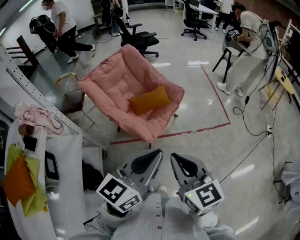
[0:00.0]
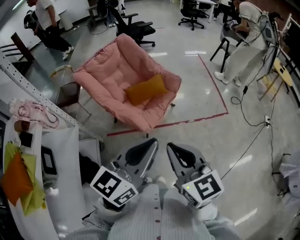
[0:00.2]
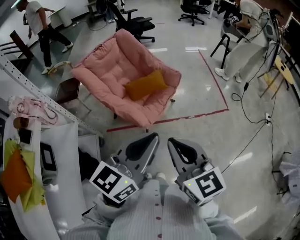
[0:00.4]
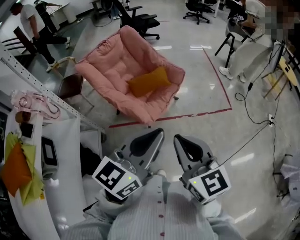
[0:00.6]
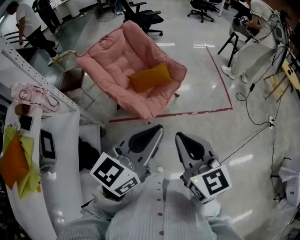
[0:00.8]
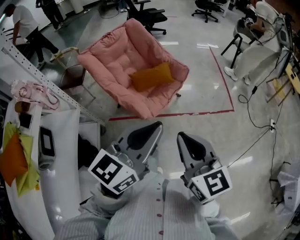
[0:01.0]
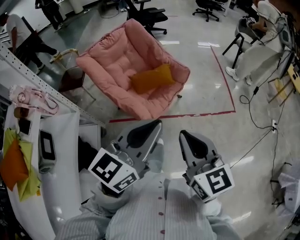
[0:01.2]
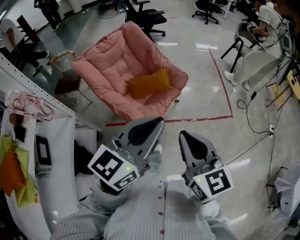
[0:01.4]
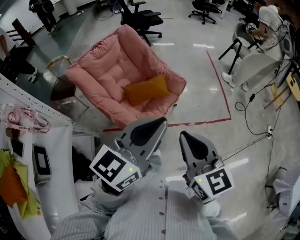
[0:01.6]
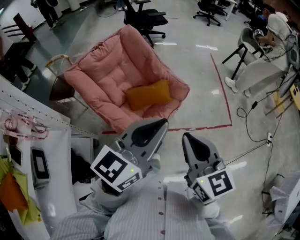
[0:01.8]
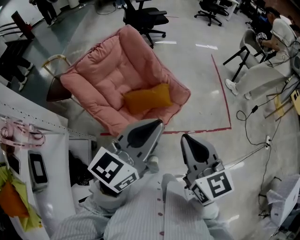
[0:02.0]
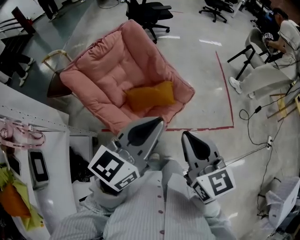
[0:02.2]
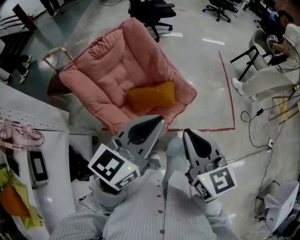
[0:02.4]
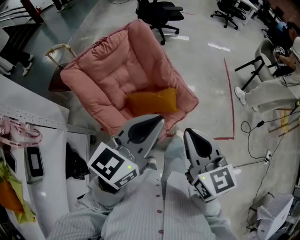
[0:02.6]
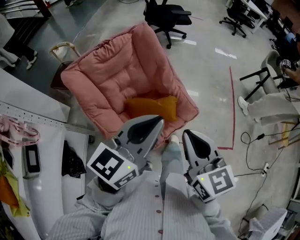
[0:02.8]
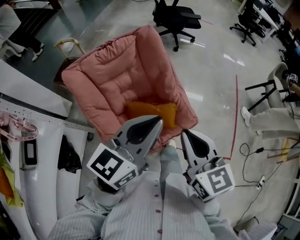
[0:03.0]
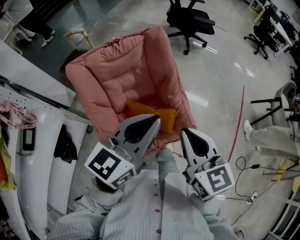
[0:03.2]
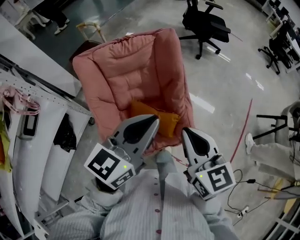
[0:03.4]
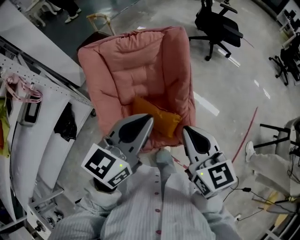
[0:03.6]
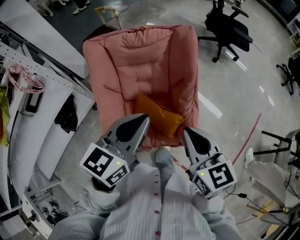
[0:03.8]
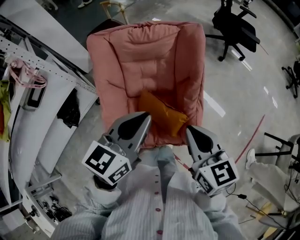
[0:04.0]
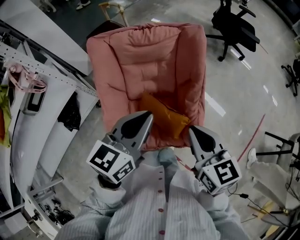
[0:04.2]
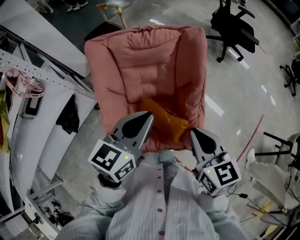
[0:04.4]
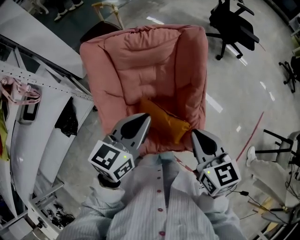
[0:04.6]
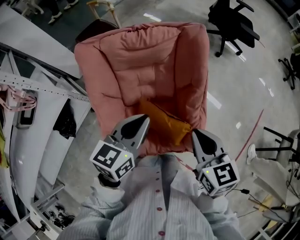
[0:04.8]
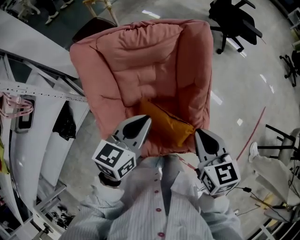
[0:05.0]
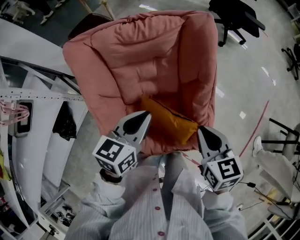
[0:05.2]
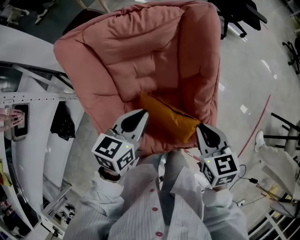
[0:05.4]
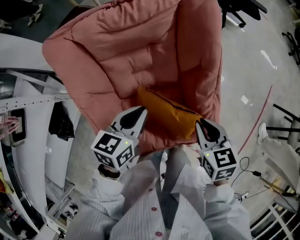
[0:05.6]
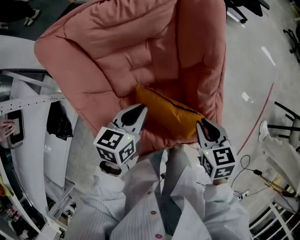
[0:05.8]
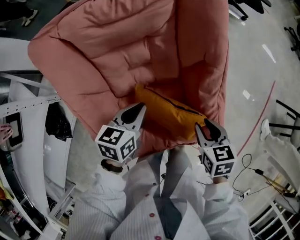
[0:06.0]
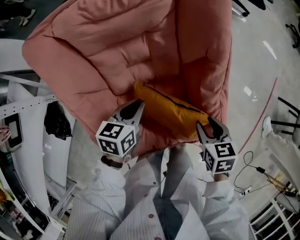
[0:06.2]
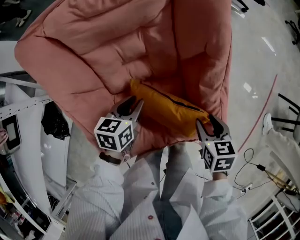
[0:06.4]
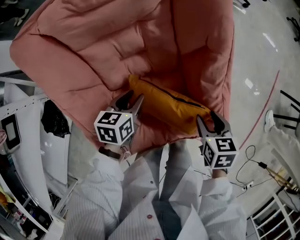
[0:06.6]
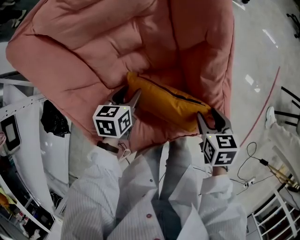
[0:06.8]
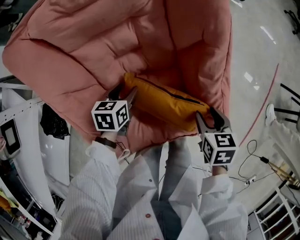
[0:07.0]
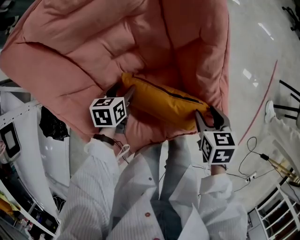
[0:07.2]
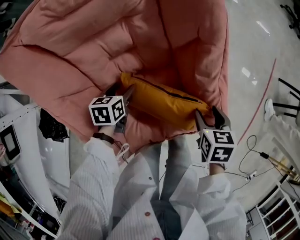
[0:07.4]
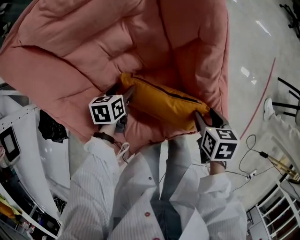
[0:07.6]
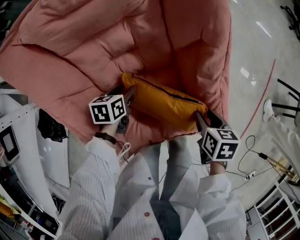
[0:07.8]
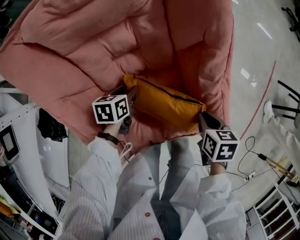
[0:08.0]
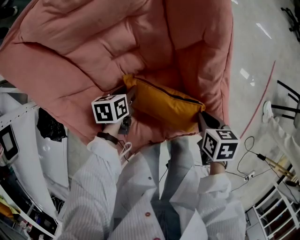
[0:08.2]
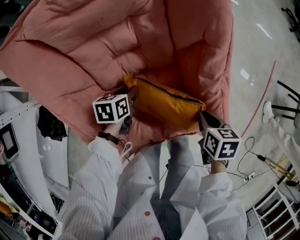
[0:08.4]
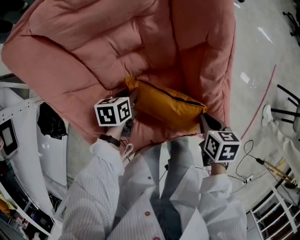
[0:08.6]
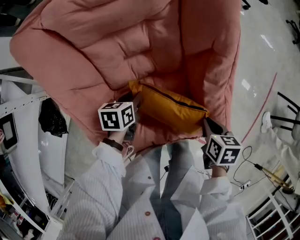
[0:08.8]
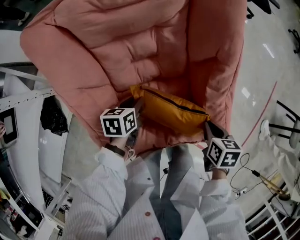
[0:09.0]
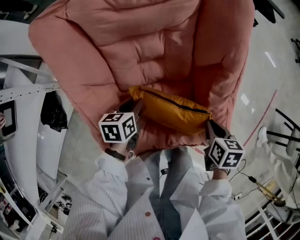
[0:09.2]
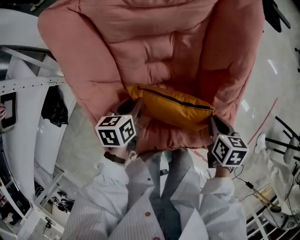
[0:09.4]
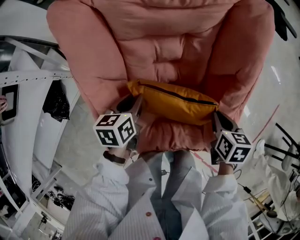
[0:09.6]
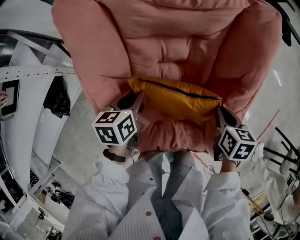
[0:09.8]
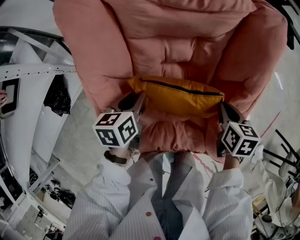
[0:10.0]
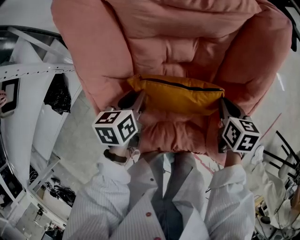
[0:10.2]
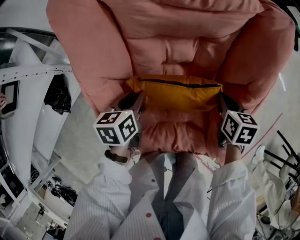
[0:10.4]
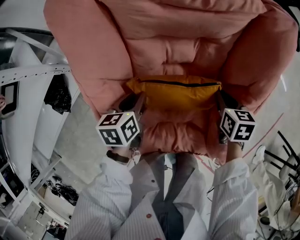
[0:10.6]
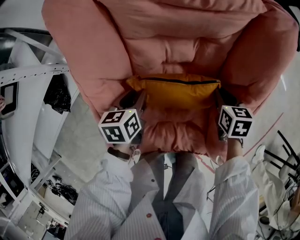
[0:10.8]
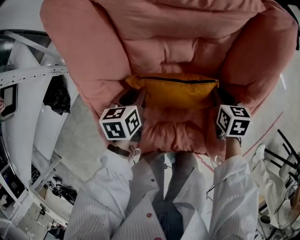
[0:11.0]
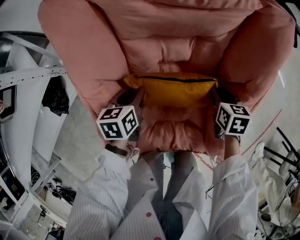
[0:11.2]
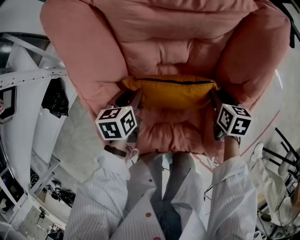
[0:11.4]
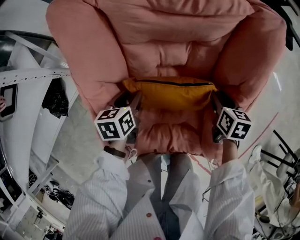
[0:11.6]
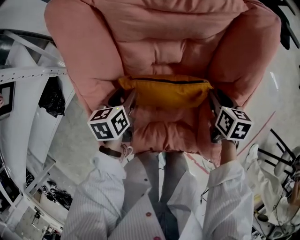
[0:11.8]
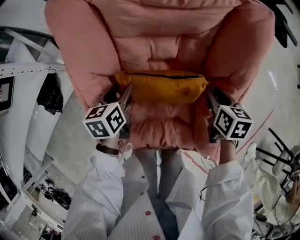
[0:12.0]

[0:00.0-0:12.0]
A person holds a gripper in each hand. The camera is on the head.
0:00.0 to 0:01.6: Both grippers move forward, approximately 20 cm.
0:01.6 to 0:03.0: Both grippers travel together forward, roughly 30 cm. The left gripper swivels some 20 degrees.
0:03.0 to 0:04.4: The left gripper shifts by roughly 15 cm, and changes its angle by about 30 degrees; the right gripper changes place by some 15 cm, and changes its angle by approximately 30 degrees.
0:04.4 to 0:06.0: The grippers both shift downward by some 30 cm. The left gripper changes its angle by some 30 degrees, while the right gripper turns by some 30 degrees, and opens its fingers.
0:06.0 to 0:07.6: The left gripper travels downward by some 15 cm, and opens; the right gripper travels downward and to the right by some 10 cm, turns by about 20 degrees, and opens its fingers.
0:07.6 to 0:09.0: The left gripper ends up roughly 5 cm from where it was, and closes its fingers; the right gripper closes up.
0:09.0 to 0:10.4: The right gripper moves forward and to the left, about 20 cm, while the left gripper travels to the left by approximately 10 cm.
0:10.4 to 0:12.0: The left gripper opens its fingers. Meanwhile the right gripper opens up.

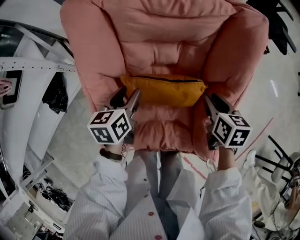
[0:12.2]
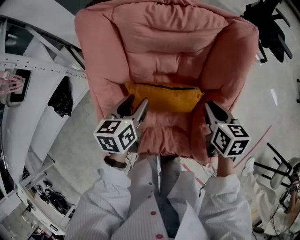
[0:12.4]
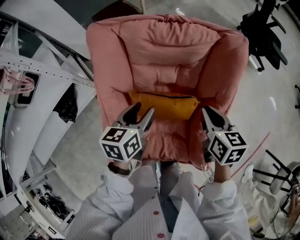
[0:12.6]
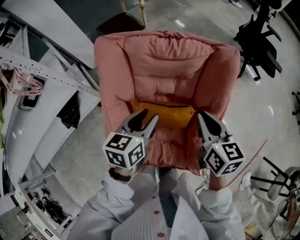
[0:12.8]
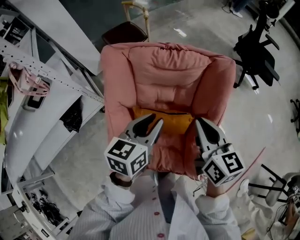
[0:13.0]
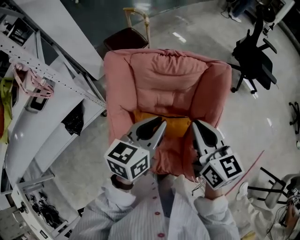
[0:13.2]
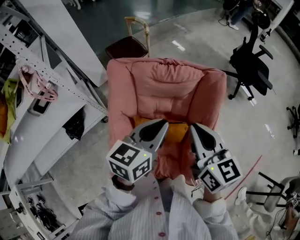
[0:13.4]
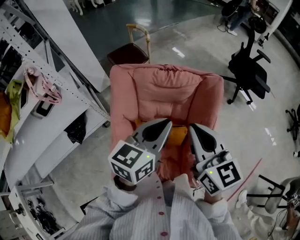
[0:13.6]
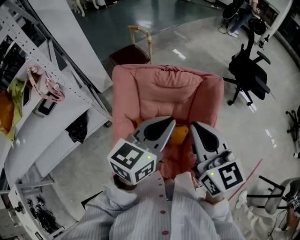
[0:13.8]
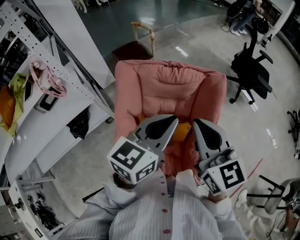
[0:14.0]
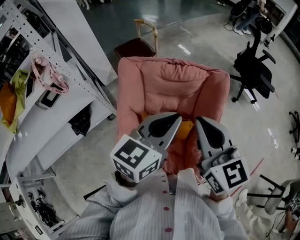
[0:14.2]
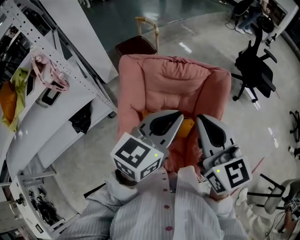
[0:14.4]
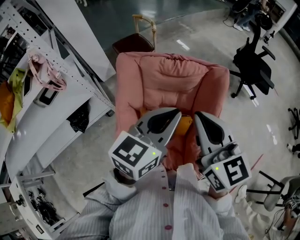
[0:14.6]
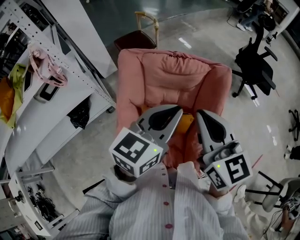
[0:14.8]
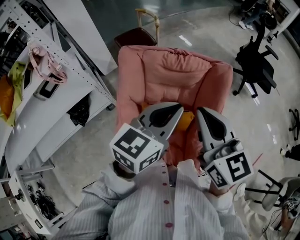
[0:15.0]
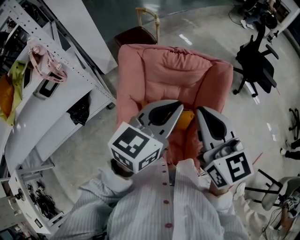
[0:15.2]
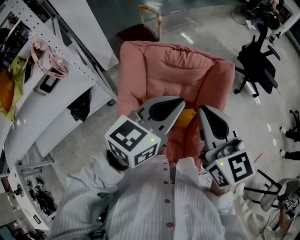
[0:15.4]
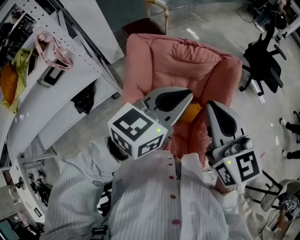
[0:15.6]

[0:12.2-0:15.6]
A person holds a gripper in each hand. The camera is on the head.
0:12.2 to 0:13.8: The two grippers go about 40 cm upward. The right gripper points its fingers some 40 degrees further upward, and closes its fingers. The left gripper changes its angle by about 40 degrees, and closes its fingers.
0:13.8 to 0:15.6: The grippers make only small movements.

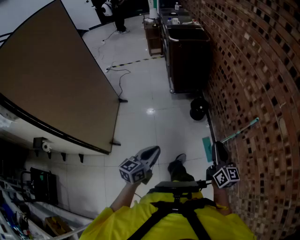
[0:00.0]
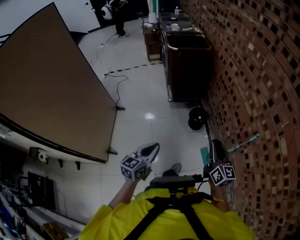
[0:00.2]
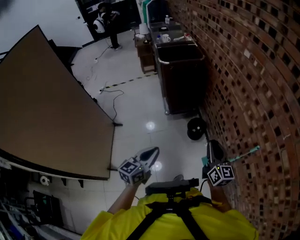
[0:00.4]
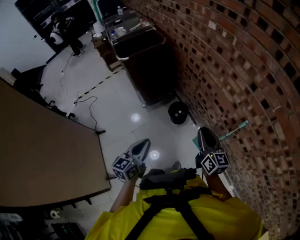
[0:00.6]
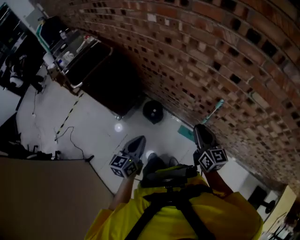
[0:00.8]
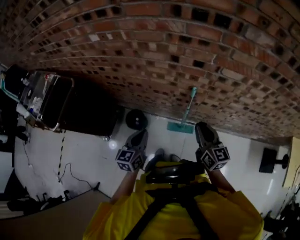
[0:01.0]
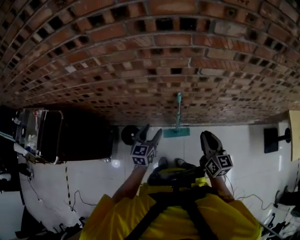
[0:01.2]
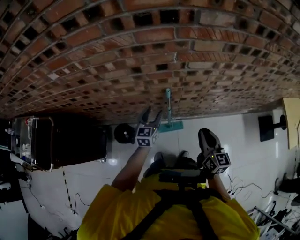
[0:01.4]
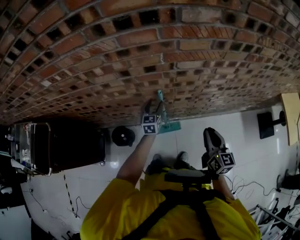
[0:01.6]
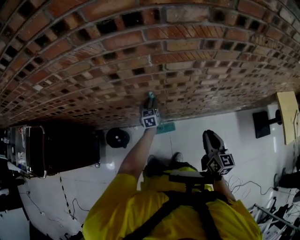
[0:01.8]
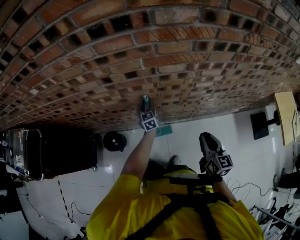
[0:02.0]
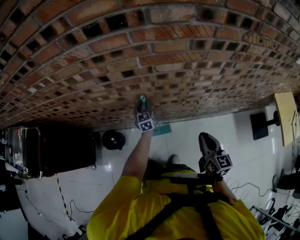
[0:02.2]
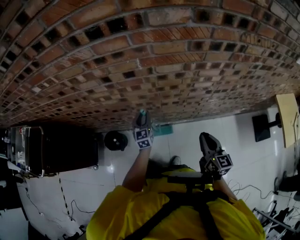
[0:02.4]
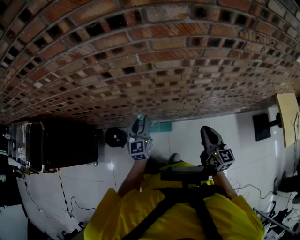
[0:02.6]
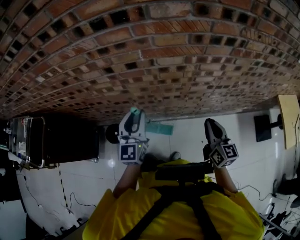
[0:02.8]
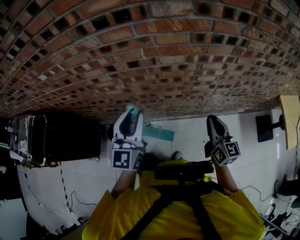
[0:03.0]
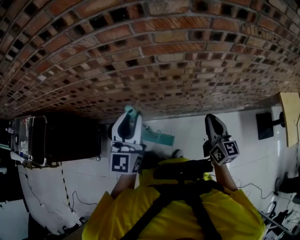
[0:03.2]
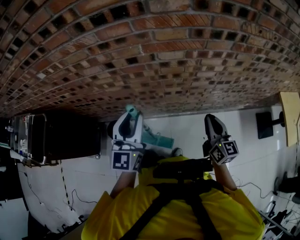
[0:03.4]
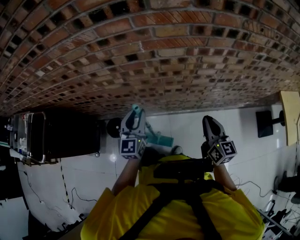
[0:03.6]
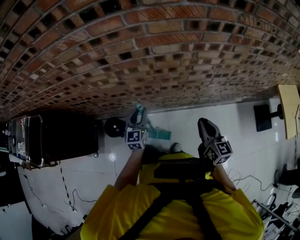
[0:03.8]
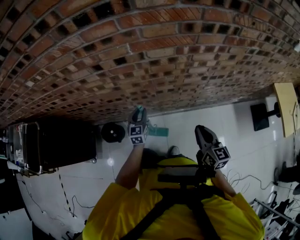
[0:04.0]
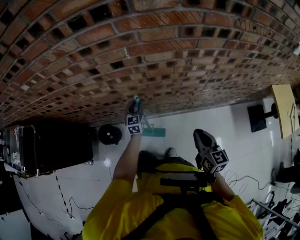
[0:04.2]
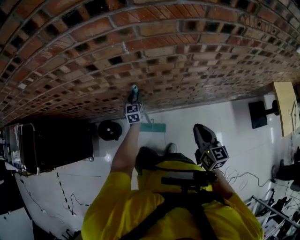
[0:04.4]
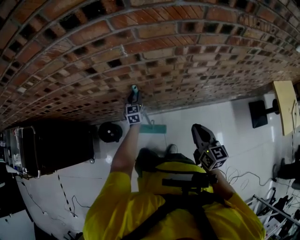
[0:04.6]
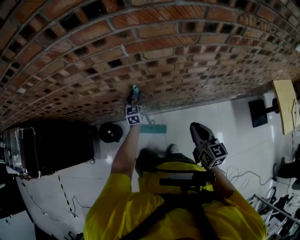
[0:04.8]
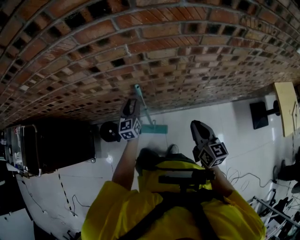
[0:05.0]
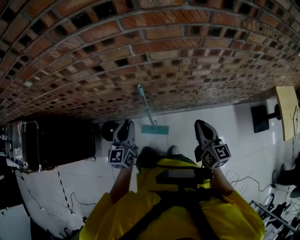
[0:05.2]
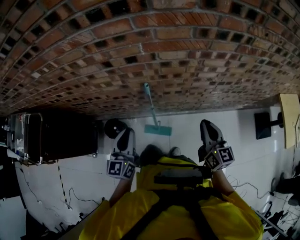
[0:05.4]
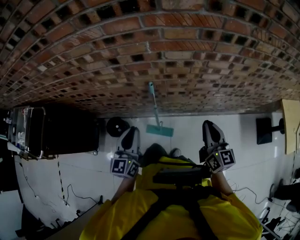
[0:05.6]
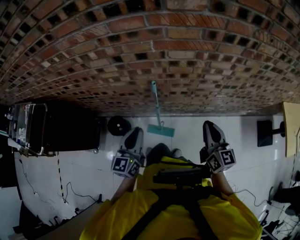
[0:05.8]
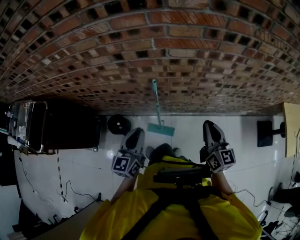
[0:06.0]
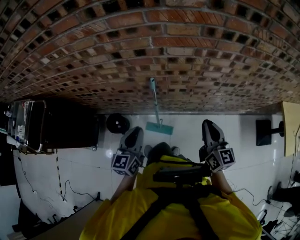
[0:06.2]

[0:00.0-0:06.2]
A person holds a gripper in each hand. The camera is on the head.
0:00.0 to 0:01.6: The right gripper ends up approximately 25 cm from where it was, and changes its angle by about 80 degrees, while the left gripper shifts by about 70 cm, turns by about 70 degrees, and opens.
0:01.6 to 0:03.2: The right gripper heads to the right, covering roughly 5 cm, while the left gripper is displaced upward and backward by about 35 cm, turns by about 30 degrees, and closes.
0:03.2 to 0:04.6: The right gripper shifts approximately 10 cm downward. The left gripper is displaced downward and forward by about 40 cm, and turns by approximately 30 degrees.
0:04.6 to 0:06.2: The left gripper travels backward and upward by approximately 35 cm; the right gripper travels upward by about 10 cm.

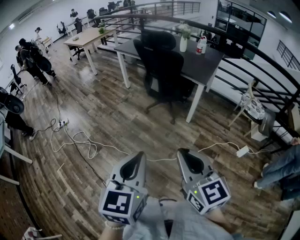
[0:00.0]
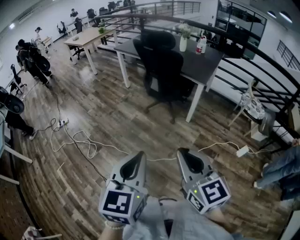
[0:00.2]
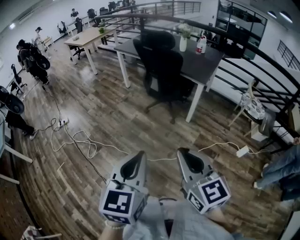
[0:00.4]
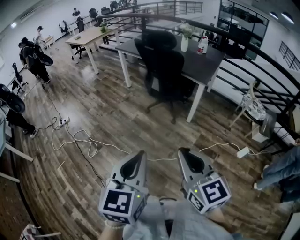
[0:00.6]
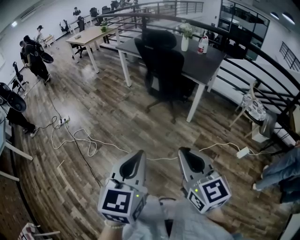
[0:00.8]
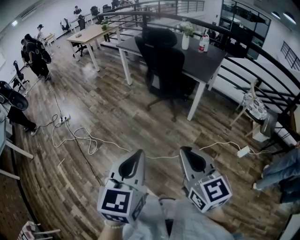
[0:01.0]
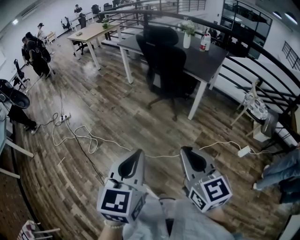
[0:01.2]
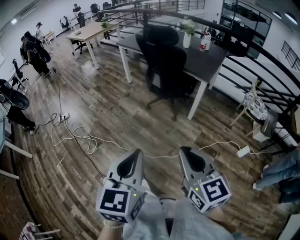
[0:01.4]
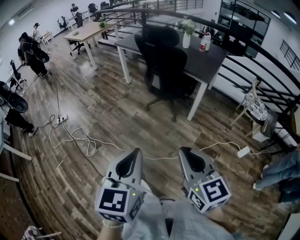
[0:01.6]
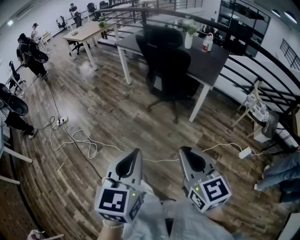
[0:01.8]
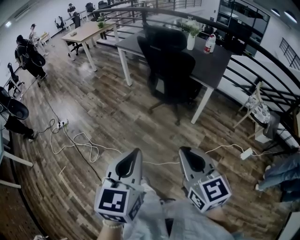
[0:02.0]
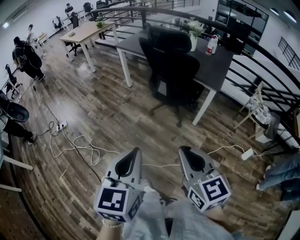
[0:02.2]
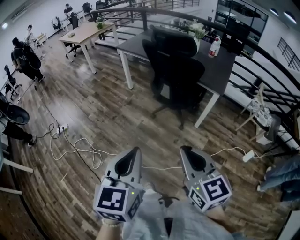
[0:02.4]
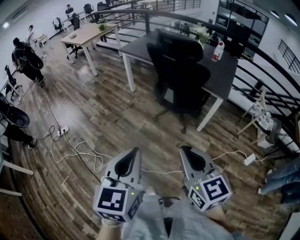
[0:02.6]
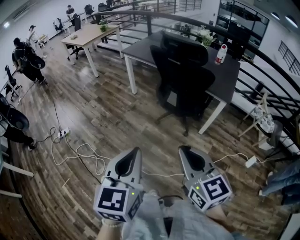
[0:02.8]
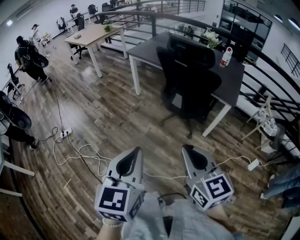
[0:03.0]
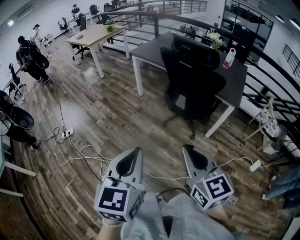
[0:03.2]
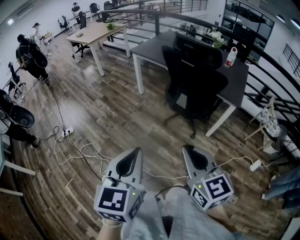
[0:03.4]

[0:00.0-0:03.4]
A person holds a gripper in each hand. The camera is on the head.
0:00.0 to 0:01.6: The grippers move only a little.
0:01.6 to 0:03.4: Both grippers travel together forward and to the left, roughly 30 cm.
